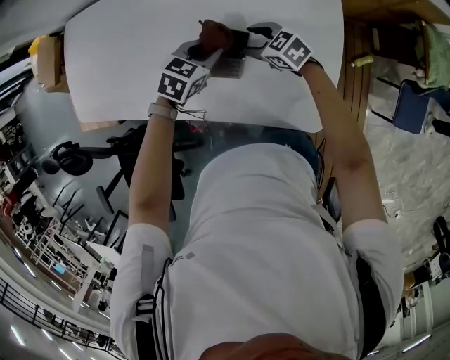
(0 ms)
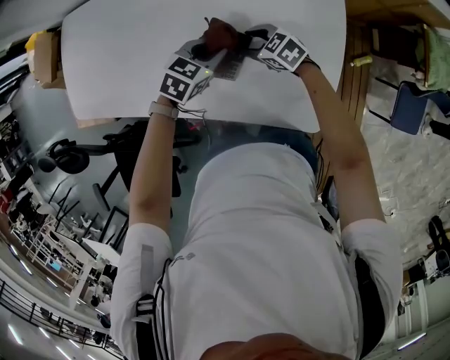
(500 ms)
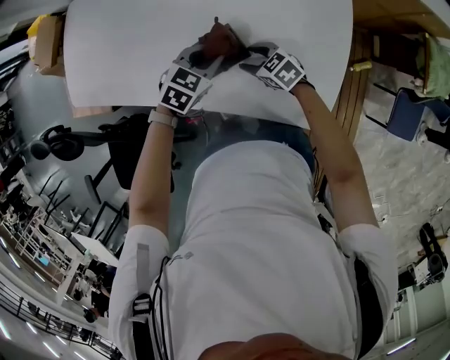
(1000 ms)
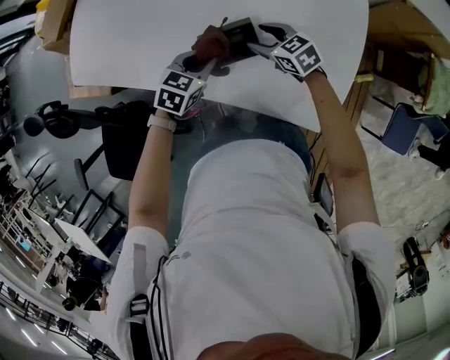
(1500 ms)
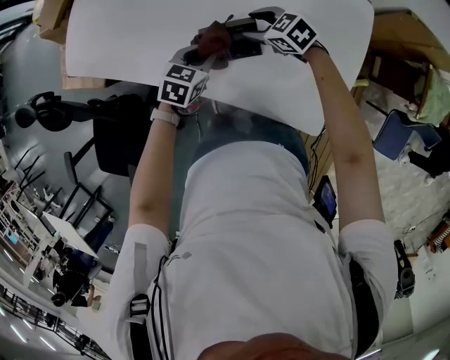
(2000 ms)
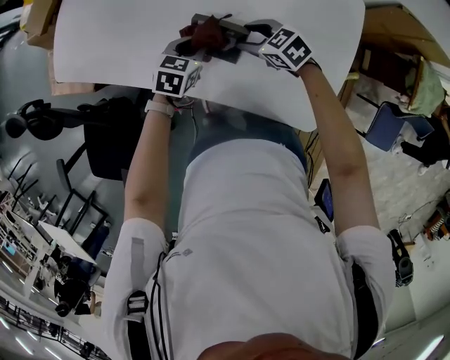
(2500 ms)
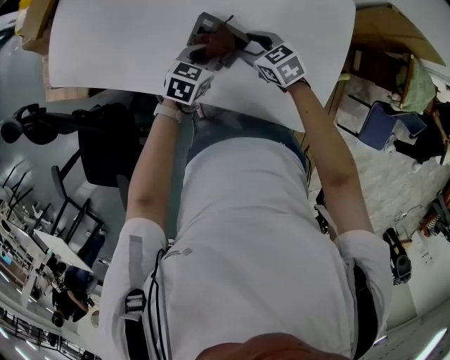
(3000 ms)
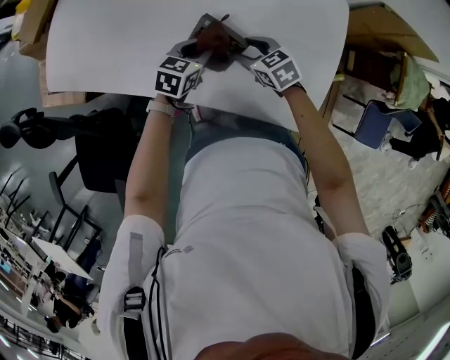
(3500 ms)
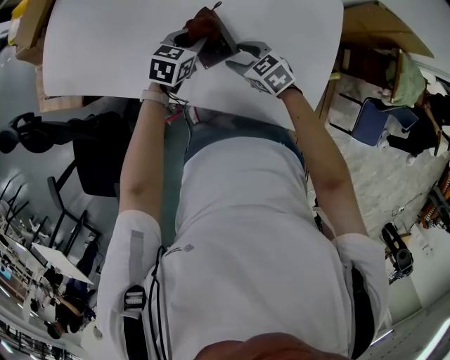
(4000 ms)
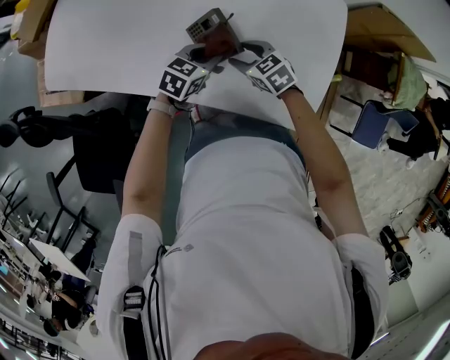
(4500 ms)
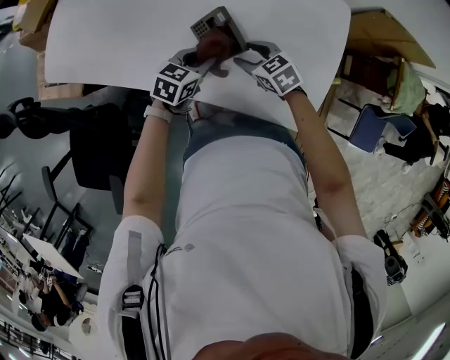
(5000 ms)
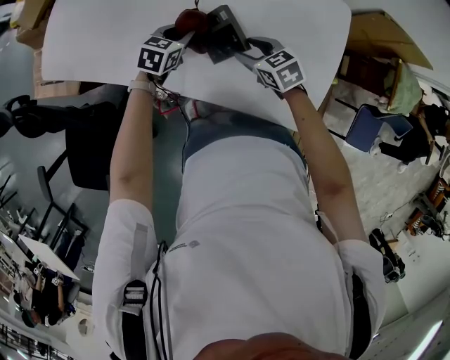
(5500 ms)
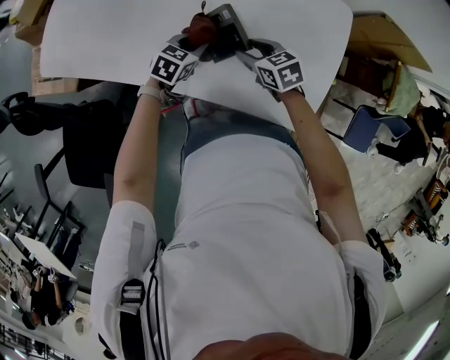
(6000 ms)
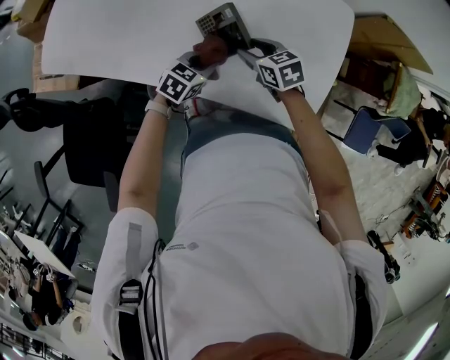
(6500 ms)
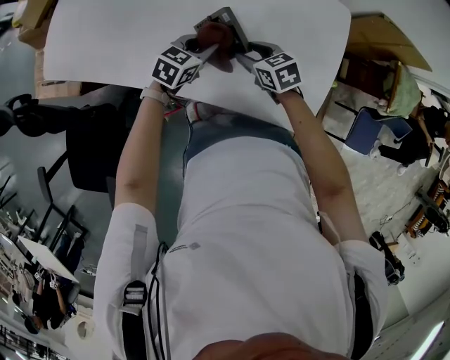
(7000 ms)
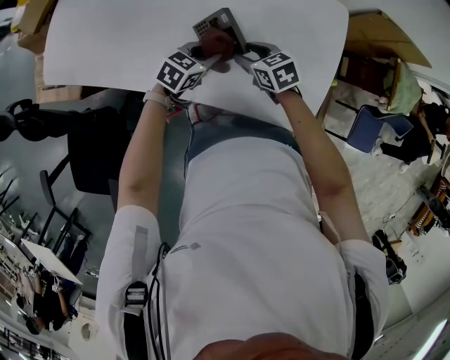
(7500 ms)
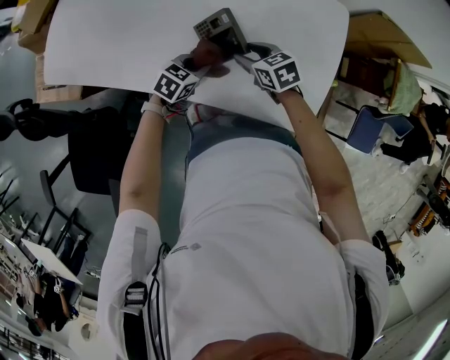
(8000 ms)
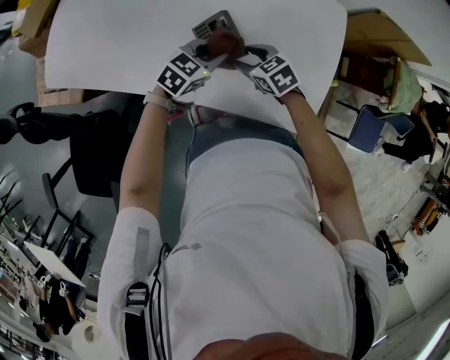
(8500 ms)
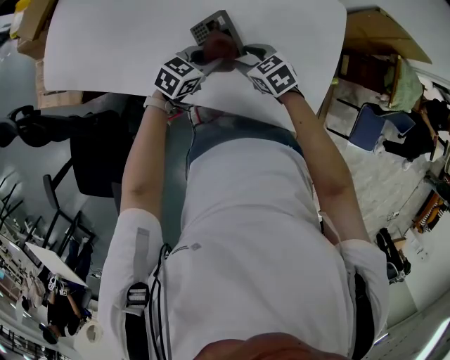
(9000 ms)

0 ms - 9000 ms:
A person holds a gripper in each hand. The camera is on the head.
0 ms - 2000 ms: The right gripper shifts by some 10 cm. The left gripper changes place by about 15 cm, and swivels some 20 degrees.
2000 ms - 4500 ms: The right gripper travels backward by some 5 cm. Meanwhile the left gripper moves to the right, approximately 5 cm.
4500 ms - 7000 ms: The left gripper moves forward and backward over approximately 10 cm, changing direction 2 times.
7000 ms - 9000 ms: The left gripper goes downward and returns, approximately 5 cm each way.

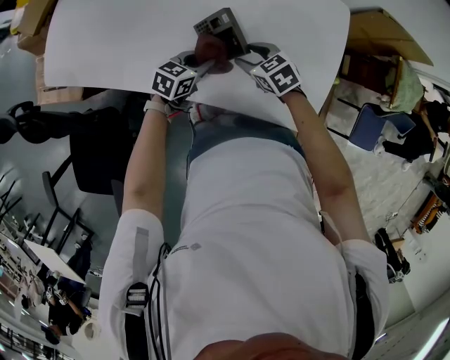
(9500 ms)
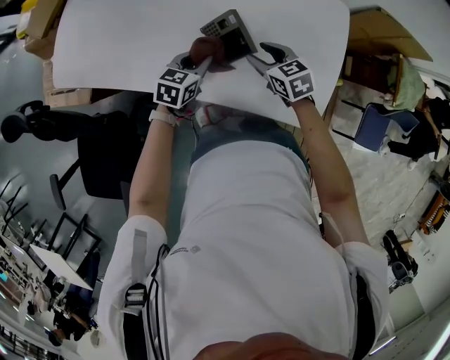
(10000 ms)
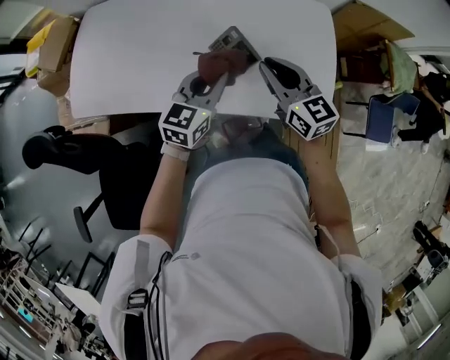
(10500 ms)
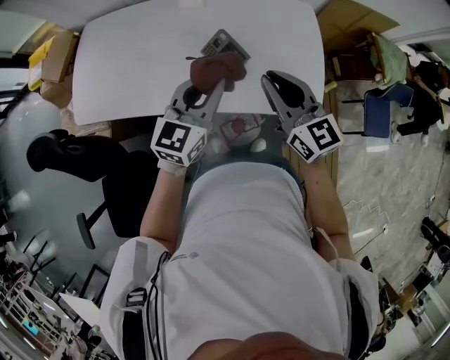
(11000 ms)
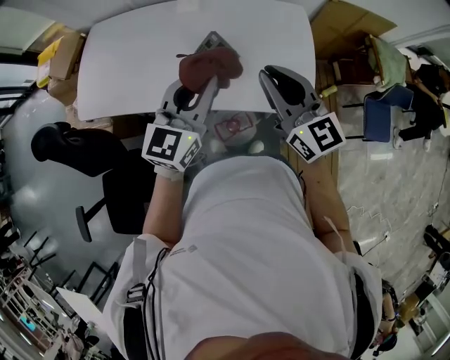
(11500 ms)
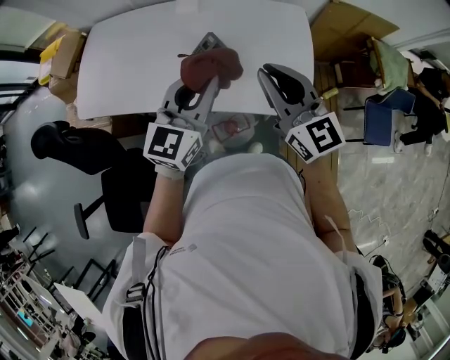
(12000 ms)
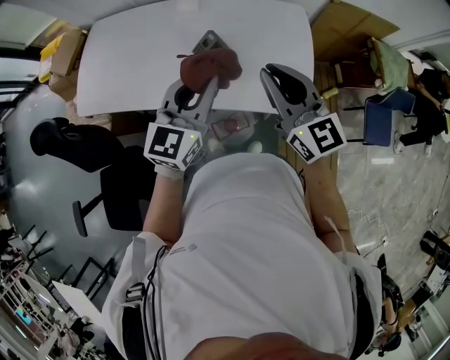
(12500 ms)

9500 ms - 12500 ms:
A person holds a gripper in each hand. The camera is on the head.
9500 ms - 11000 ms: The left gripper moves upward, approximately 30 cm, and changes its angle by some 40 degrees. The right gripper goes about 30 cm upward and backward, angles its fingers upward, by roughly 50 degrees, and closes.
11000 ms - 12500 ms: The right gripper goes some 10 cm upward and to the right, while the left gripper heads upward, covering about 5 cm.

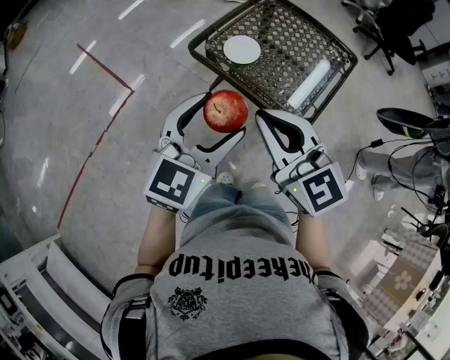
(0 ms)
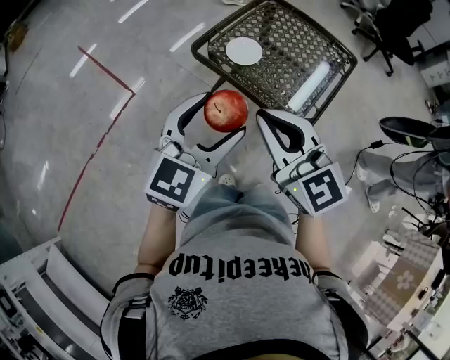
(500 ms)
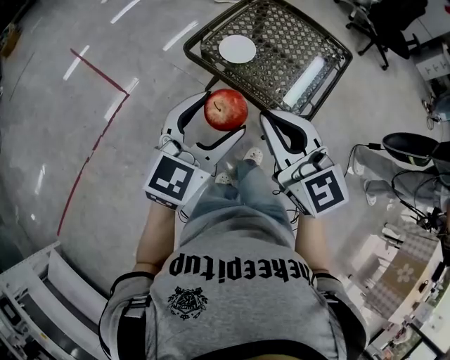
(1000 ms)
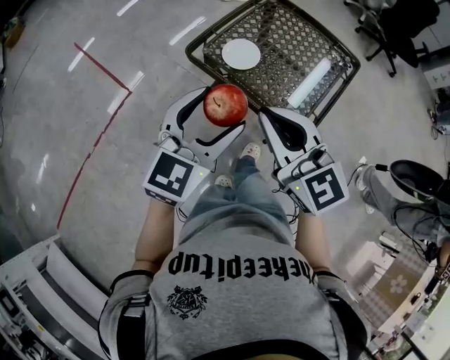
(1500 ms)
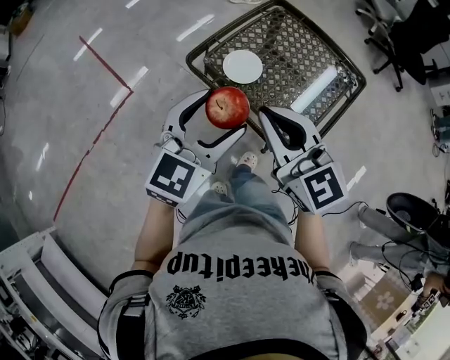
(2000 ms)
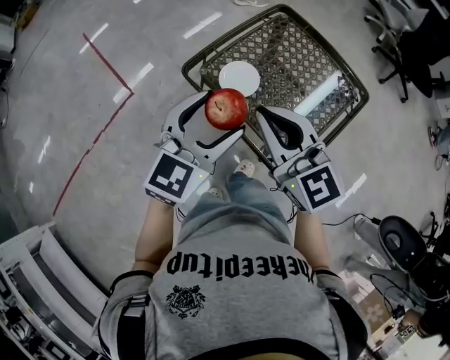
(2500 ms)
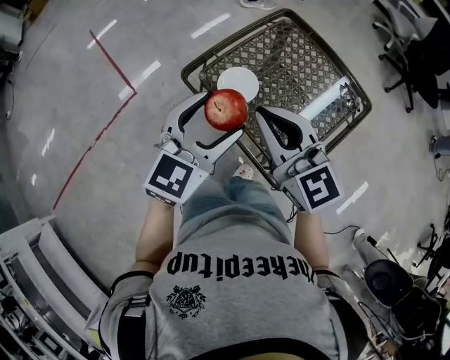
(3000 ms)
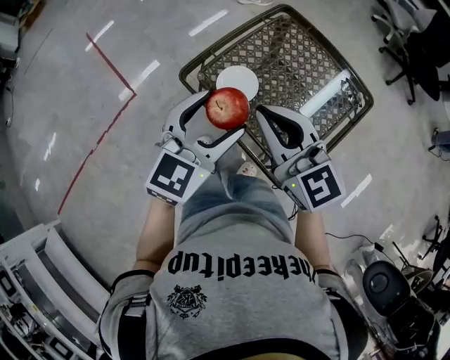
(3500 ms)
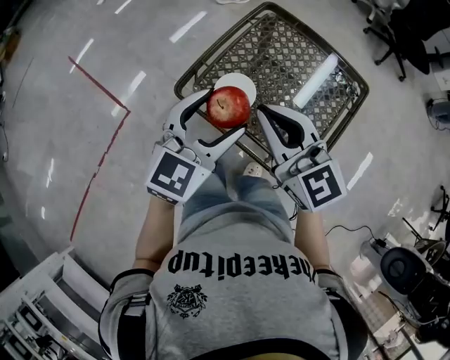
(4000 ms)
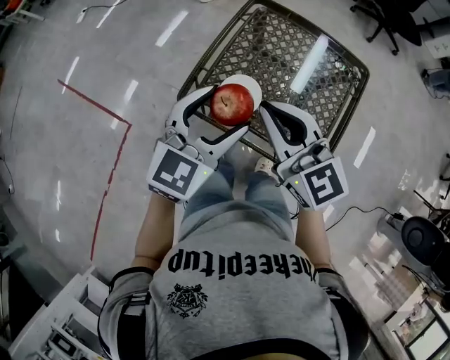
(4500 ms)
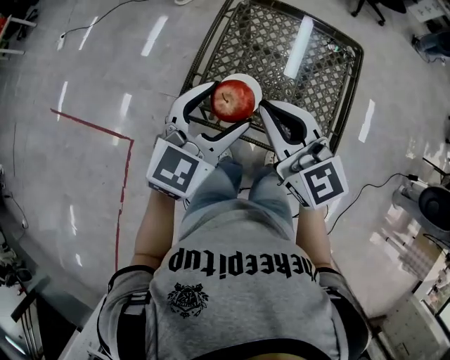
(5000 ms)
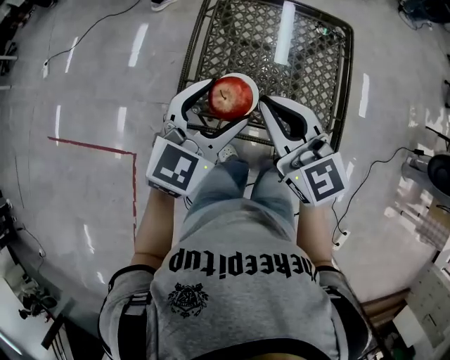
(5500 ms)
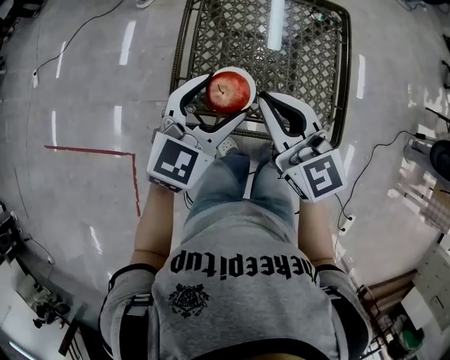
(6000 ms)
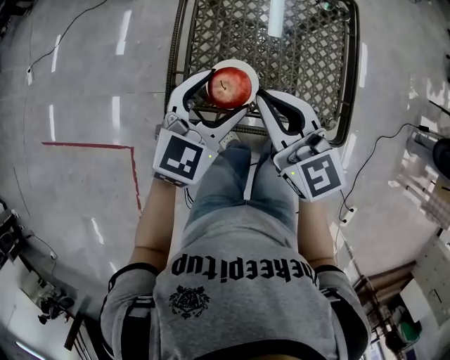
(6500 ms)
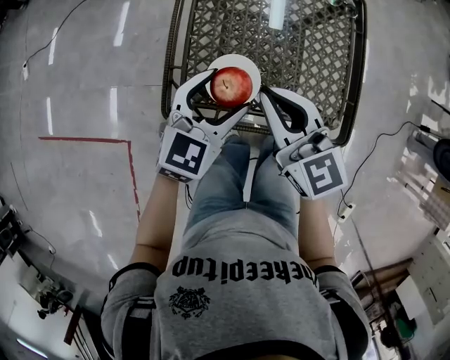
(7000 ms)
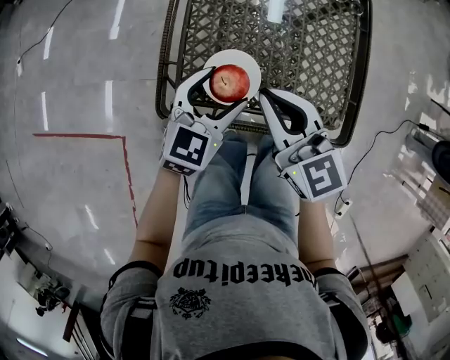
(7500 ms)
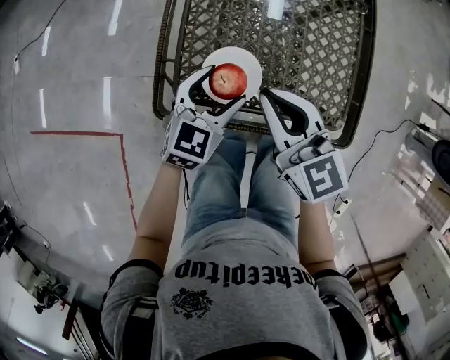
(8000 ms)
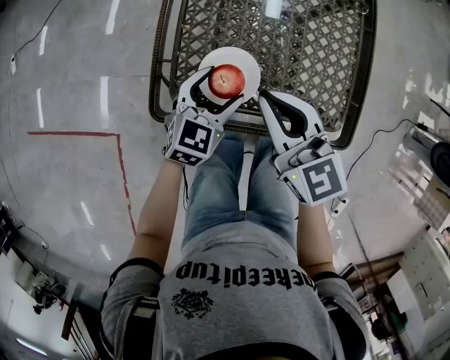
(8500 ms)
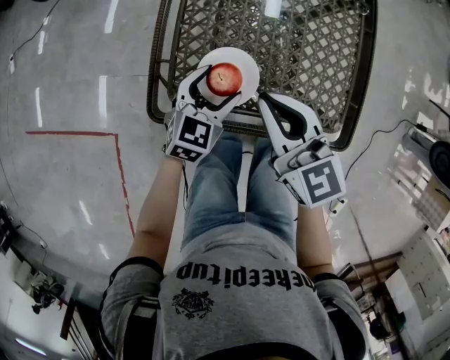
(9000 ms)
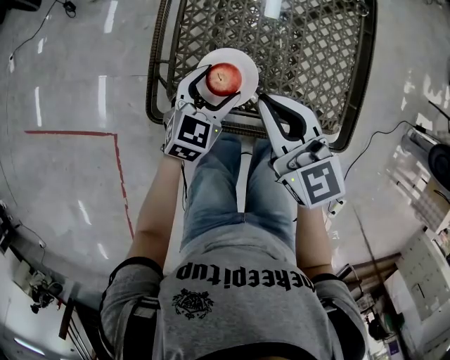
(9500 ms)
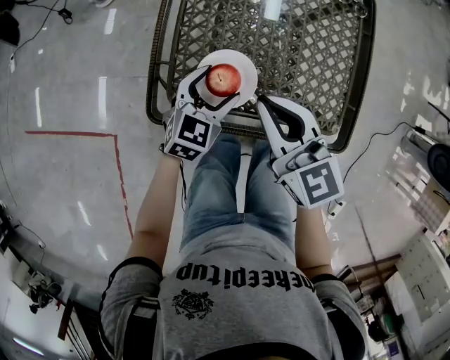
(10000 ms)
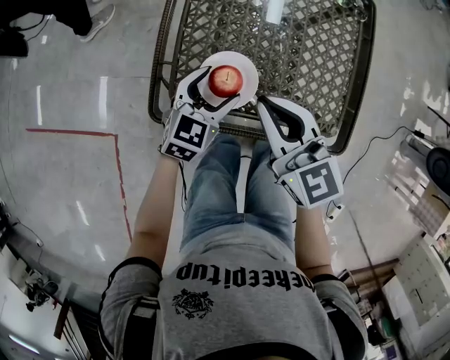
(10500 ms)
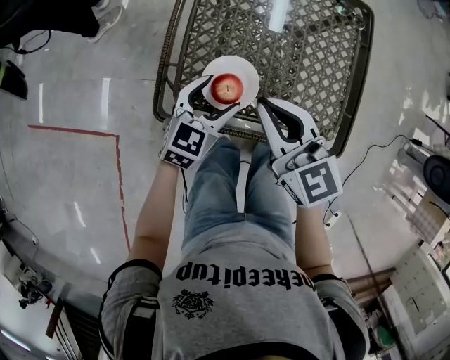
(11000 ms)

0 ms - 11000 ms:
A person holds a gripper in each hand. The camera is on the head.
0 ms - 2000 ms: The grippers both shift forward by approximately 10 cm.
2000 ms - 3500 ms: The grippers both shift forward by some 10 cm.
3500 ms - 5500 ms: The left gripper ends up some 10 cm from where it was, and changes its angle by about 40 degrees, while the right gripper ends up about 10 cm from where it was, and turns by about 40 degrees.
5500 ms - 7500 ms: Both grippers travel together downward, roughly 15 cm.
7500 ms - 9000 ms: The left gripper travels downward by about 10 cm.
9000 ms - 11000 ms: The grippers move only a little.

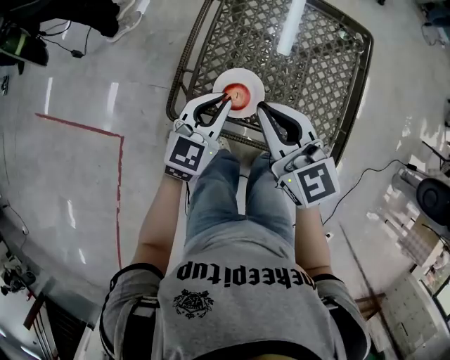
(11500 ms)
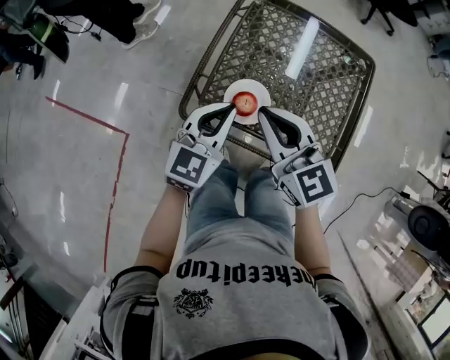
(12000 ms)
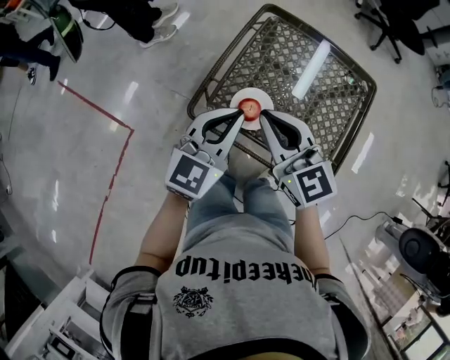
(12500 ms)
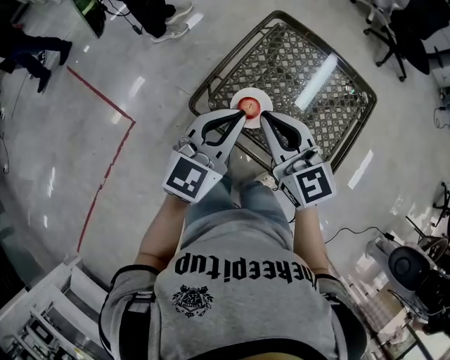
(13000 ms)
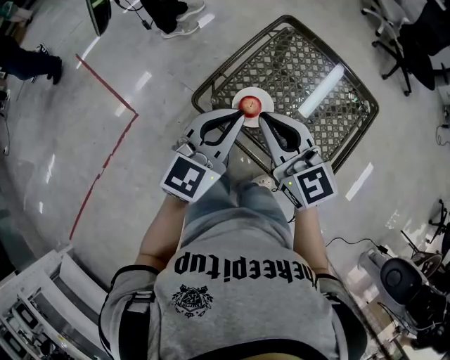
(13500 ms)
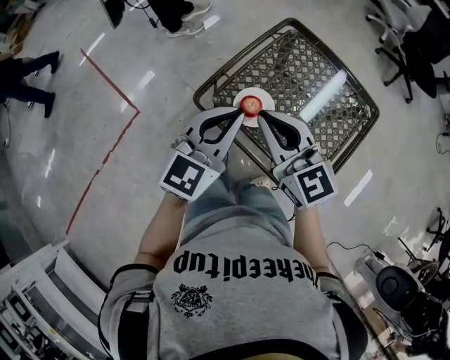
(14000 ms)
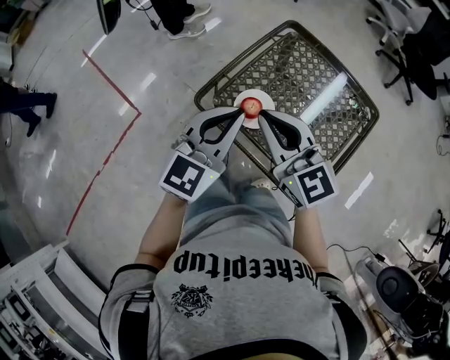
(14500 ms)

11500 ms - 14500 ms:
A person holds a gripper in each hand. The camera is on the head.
11500 ms - 13000 ms: The left gripper goes roughly 15 cm upward and backward, and changes its angle by approximately 20 degrees. The right gripper goes roughly 5 cm upward.
13000 ms - 14500 ms: The grippers make only small movements.
